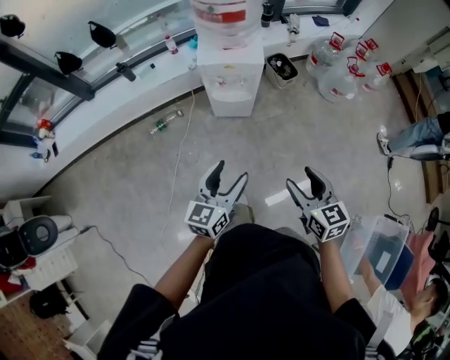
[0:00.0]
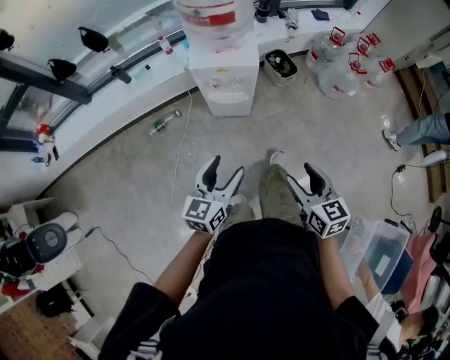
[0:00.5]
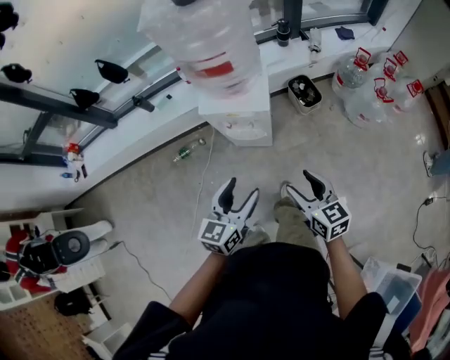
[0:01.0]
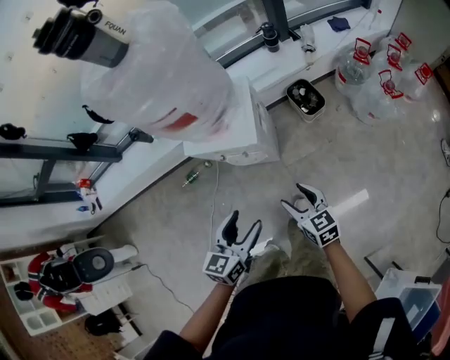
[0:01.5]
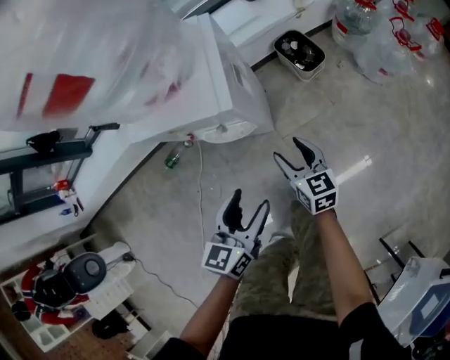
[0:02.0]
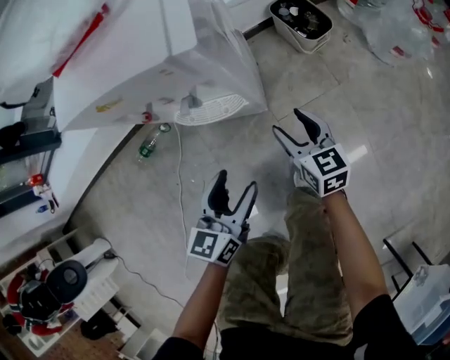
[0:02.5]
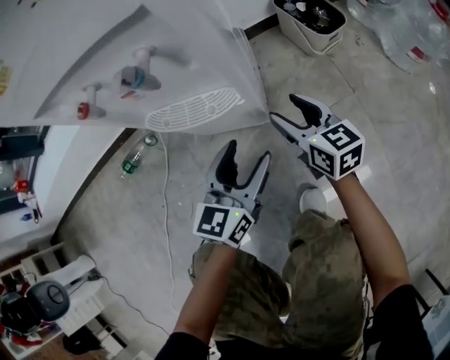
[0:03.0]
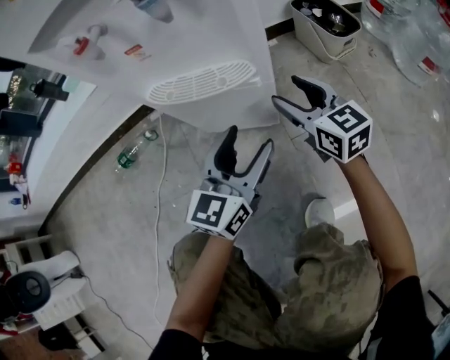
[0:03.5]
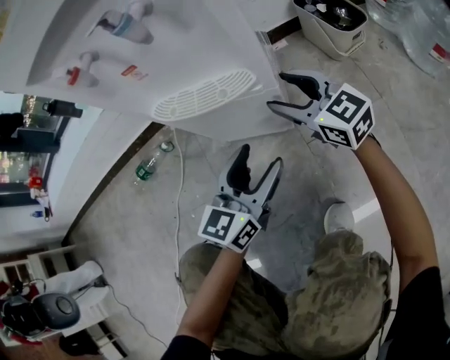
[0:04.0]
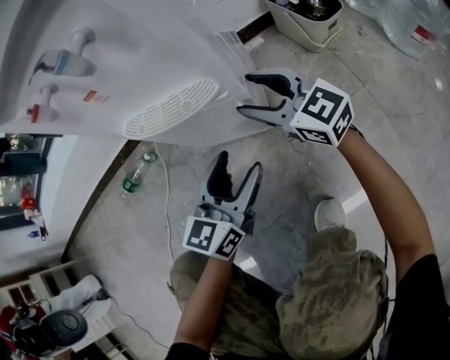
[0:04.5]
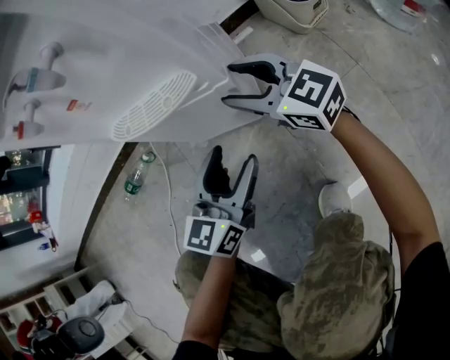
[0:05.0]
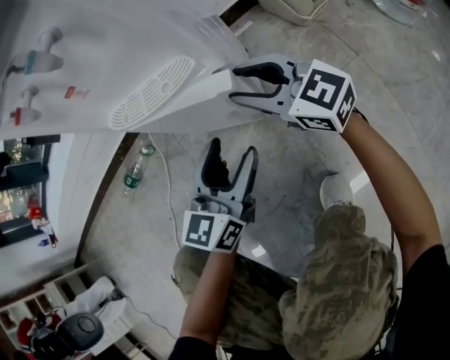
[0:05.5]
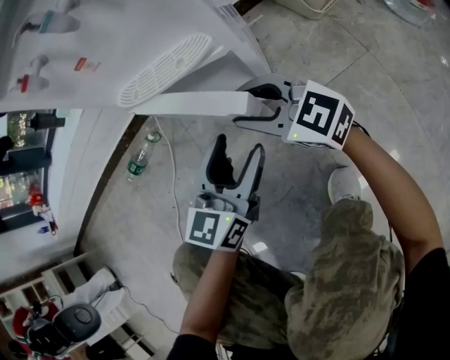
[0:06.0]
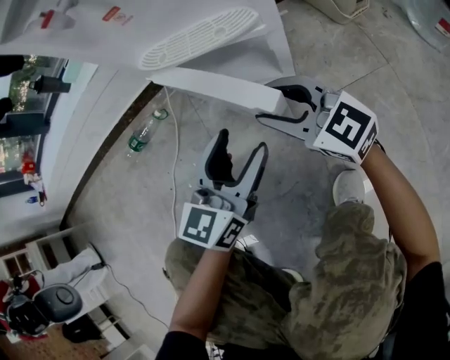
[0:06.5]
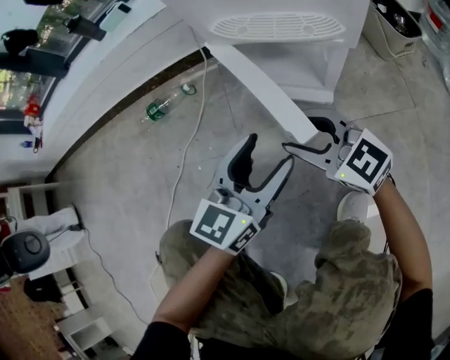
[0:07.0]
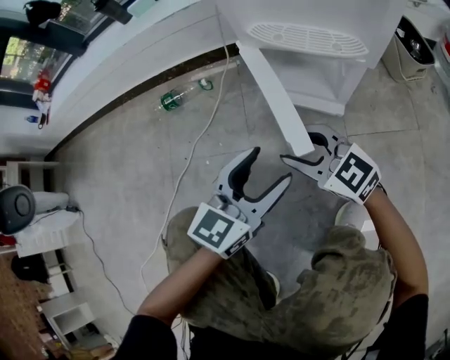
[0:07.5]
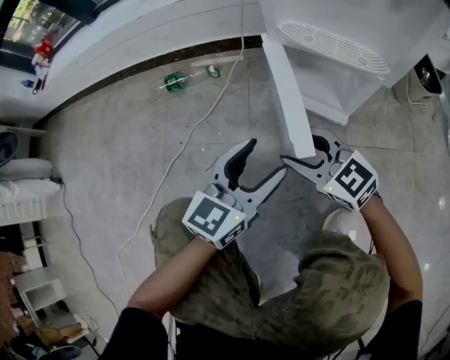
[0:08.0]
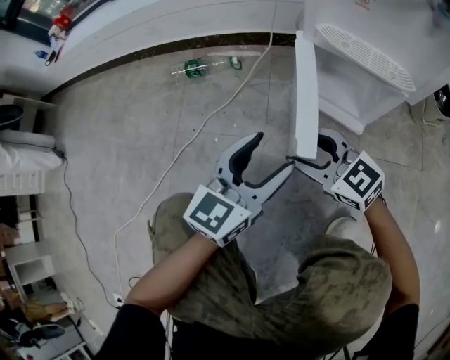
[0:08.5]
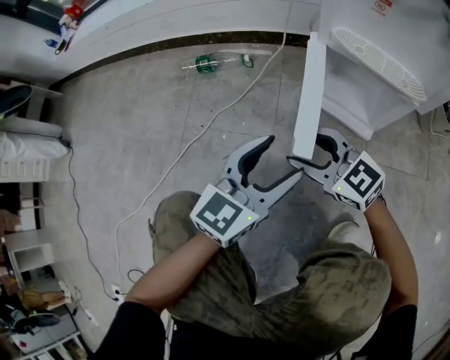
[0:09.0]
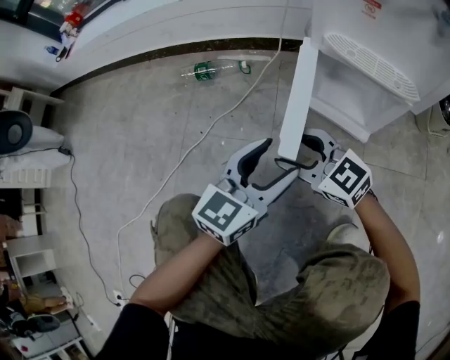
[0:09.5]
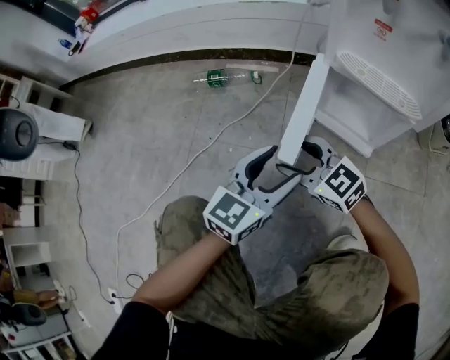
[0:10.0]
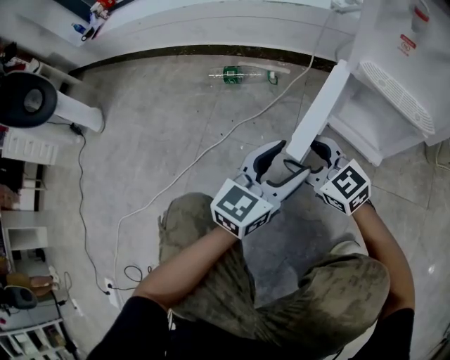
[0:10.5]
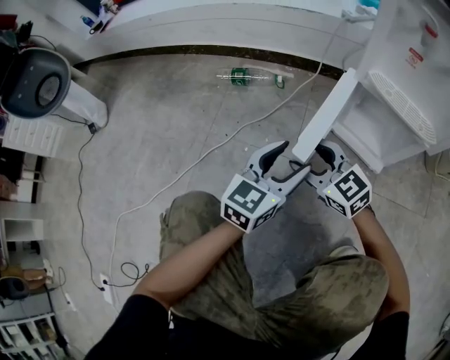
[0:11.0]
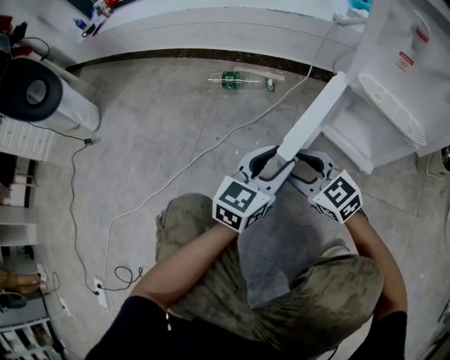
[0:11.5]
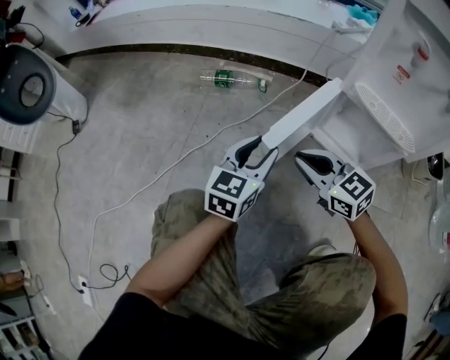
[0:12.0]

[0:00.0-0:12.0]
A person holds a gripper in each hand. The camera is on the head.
0:00.0 to 0:02.0: The right gripper heads downward and forward, covering some 50 cm. Meanwhile the left gripper is displaced downward, forward and to the right by approximately 40 cm.
0:02.0 to 0:04.0: The grippers both shift downward by roughly 35 cm. The right gripper rotates roughly 30 degrees.
0:04.0 to 0:06.0: The right gripper goes approximately 10 cm backward and to the left.
0:06.0 to 0:08.0: The grippers both shift to the left by roughly 15 cm. The right gripper changes its angle by some 20 degrees.
0:08.0 to 0:10.0: The right gripper heads to the left, covering approximately 10 cm.
0:10.0 to 0:12.0: The left gripper moves forward and to the left, roughly 10 cm, and closes, while the right gripper closes up.

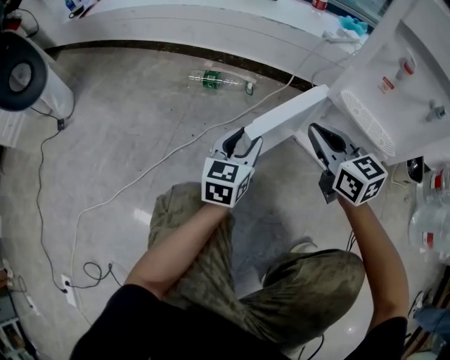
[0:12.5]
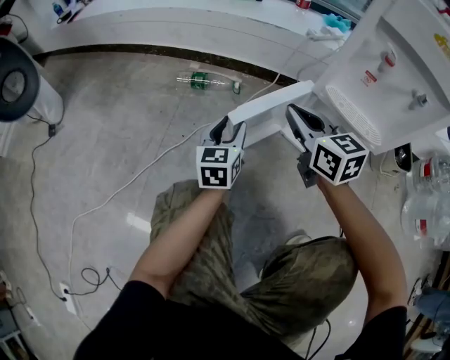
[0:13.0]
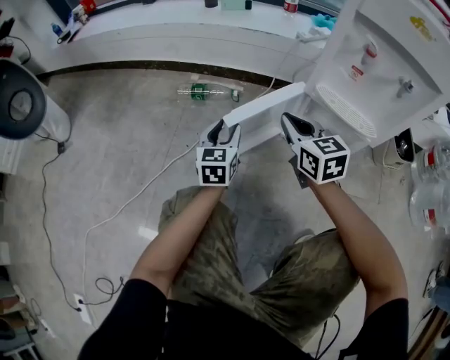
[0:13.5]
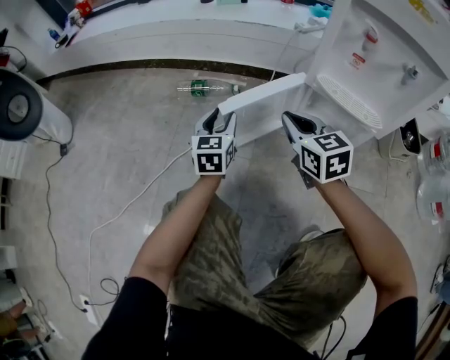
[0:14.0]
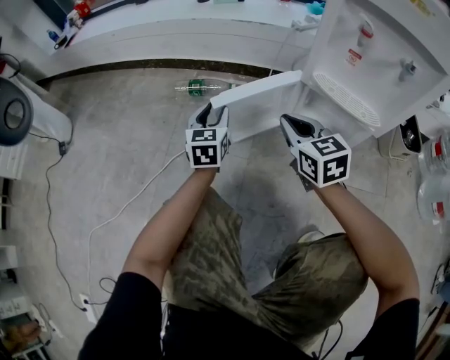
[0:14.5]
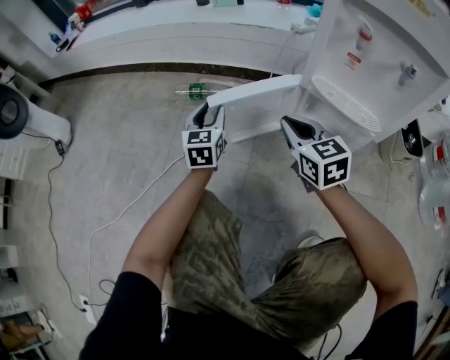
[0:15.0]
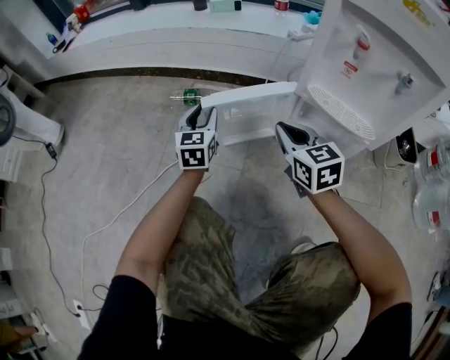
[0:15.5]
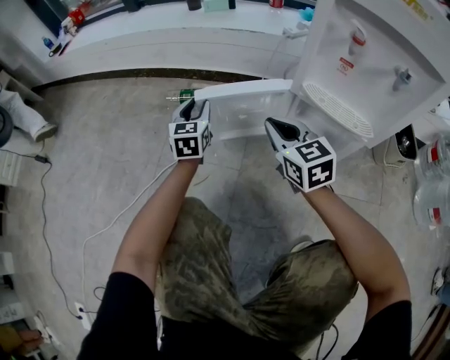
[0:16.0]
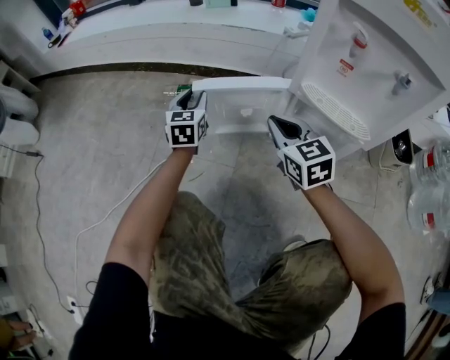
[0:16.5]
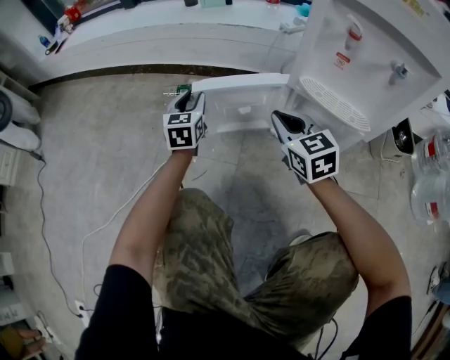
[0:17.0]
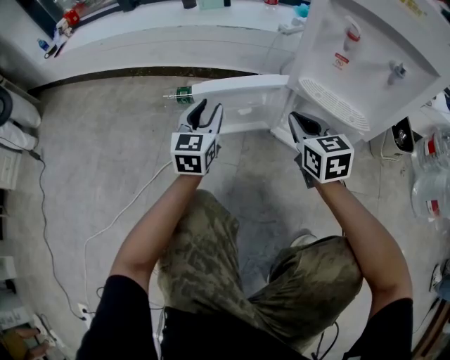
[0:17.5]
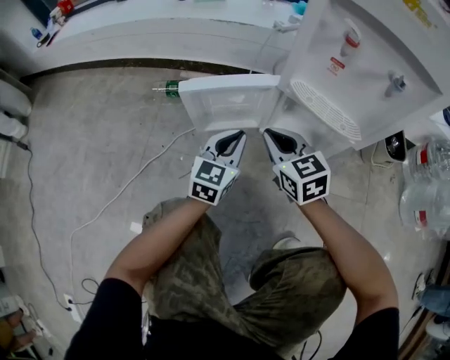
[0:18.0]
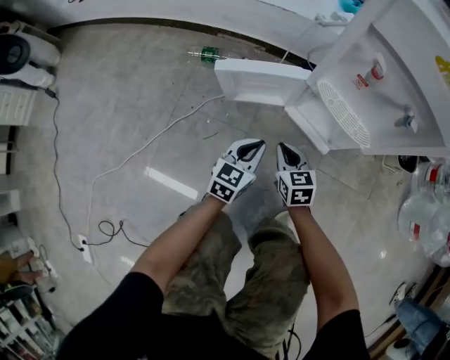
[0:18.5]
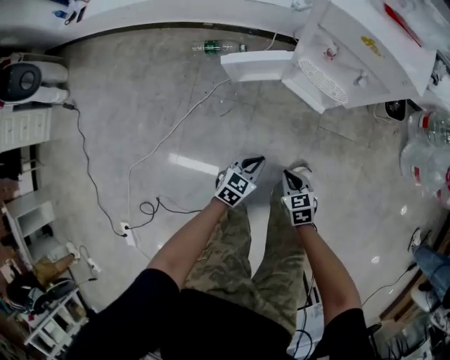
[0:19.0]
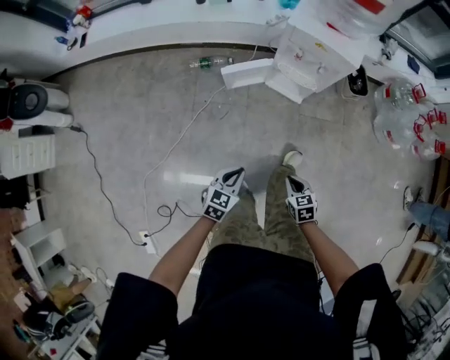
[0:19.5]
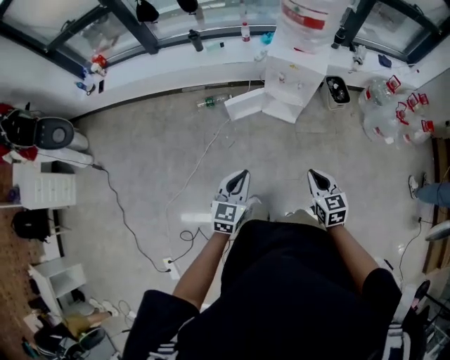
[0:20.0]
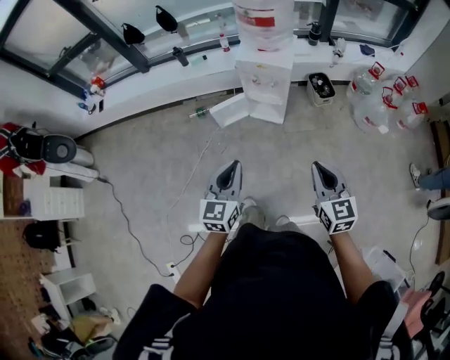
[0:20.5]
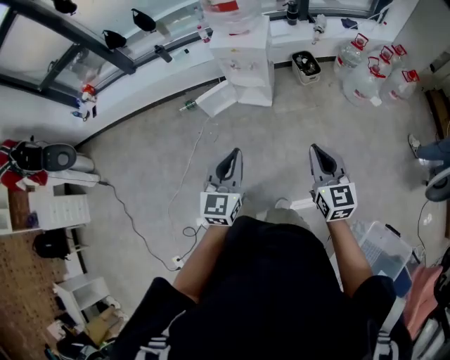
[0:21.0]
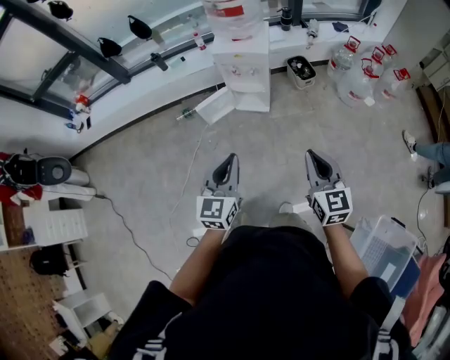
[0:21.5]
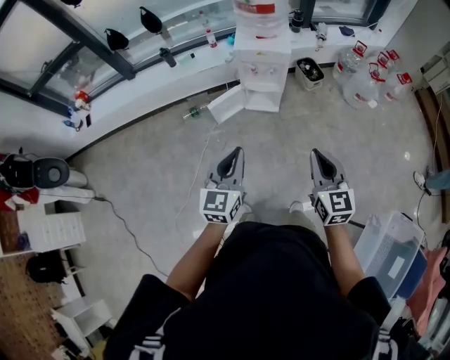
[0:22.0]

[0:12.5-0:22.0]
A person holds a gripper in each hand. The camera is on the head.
0:12.5 to 0:14.5: The left gripper is displaced forward by some 10 cm.
0:14.5 to 0:16.5: The left gripper travels forward by approximately 10 cm.
0:16.5 to 0:18.0: The left gripper travels backward and to the right by roughly 20 cm, rotates some 20 degrees, and closes its fingers.
0:18.0 to 0:20.0: The grippers both shift upward and backward by about 70 cm. The right gripper turns by roughly 20 degrees.
0:20.0 to 0:22.0: The left gripper travels upward by roughly 10 cm, and moves approximately 20 cm to the right and comes back; the right gripper goes about 15 cm upward and backward, reaches approximately 20 cm to the right, then returns, and rotates about 30 degrees.

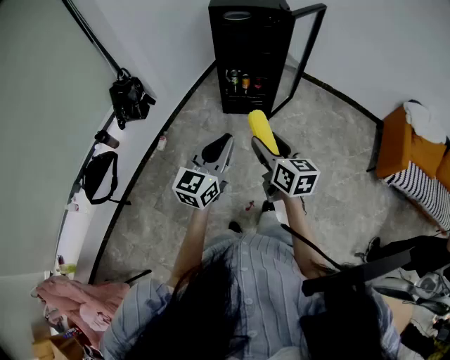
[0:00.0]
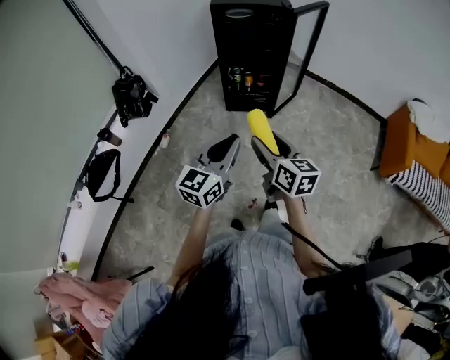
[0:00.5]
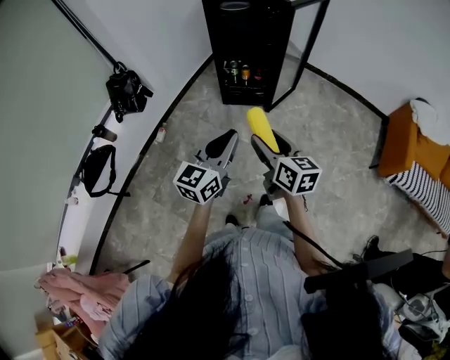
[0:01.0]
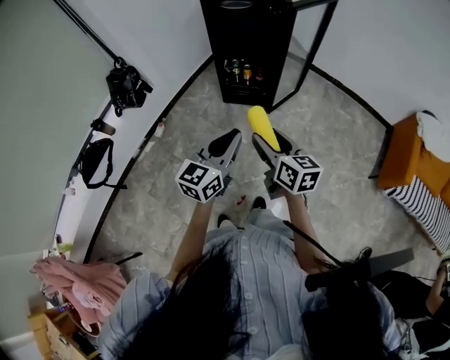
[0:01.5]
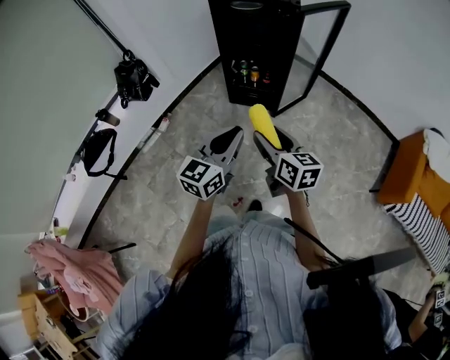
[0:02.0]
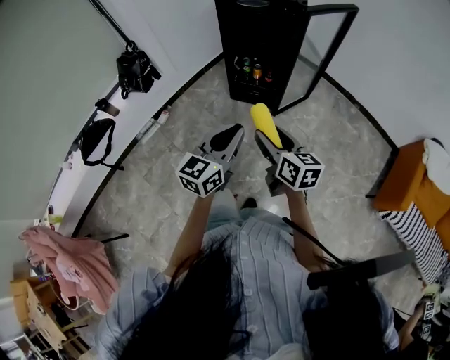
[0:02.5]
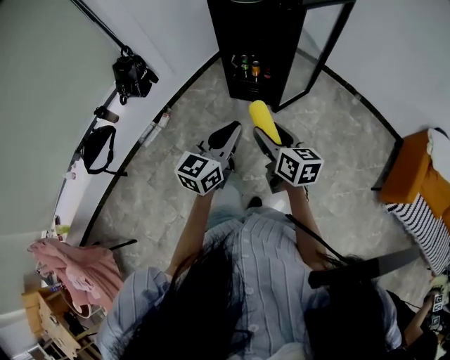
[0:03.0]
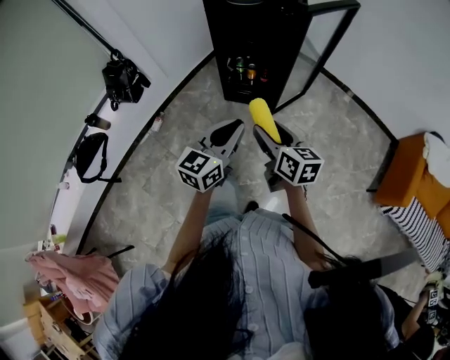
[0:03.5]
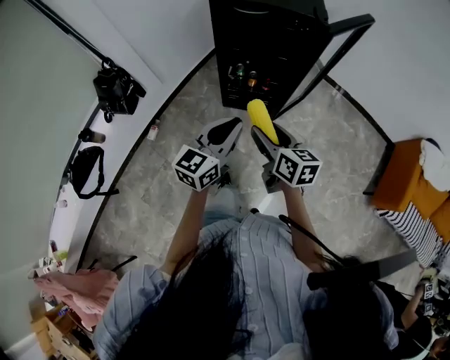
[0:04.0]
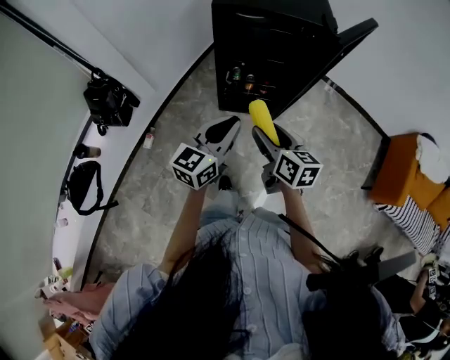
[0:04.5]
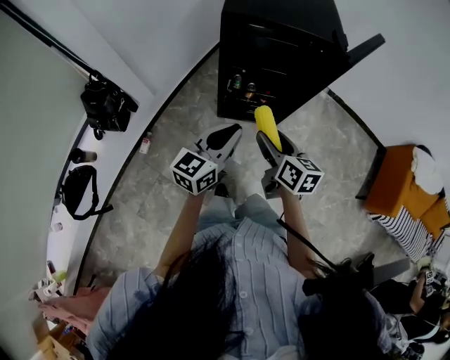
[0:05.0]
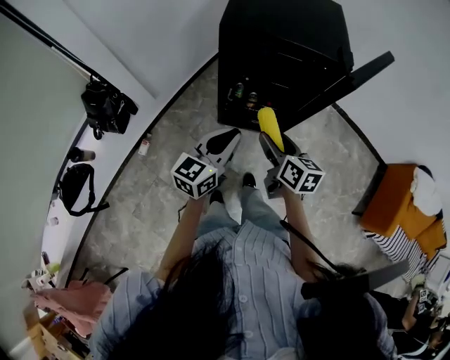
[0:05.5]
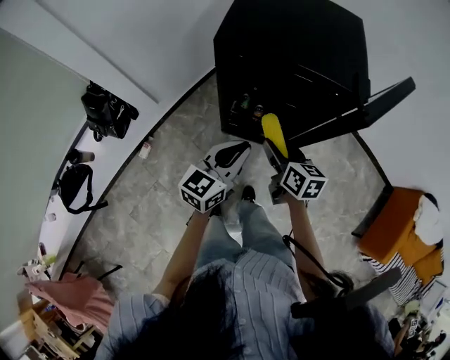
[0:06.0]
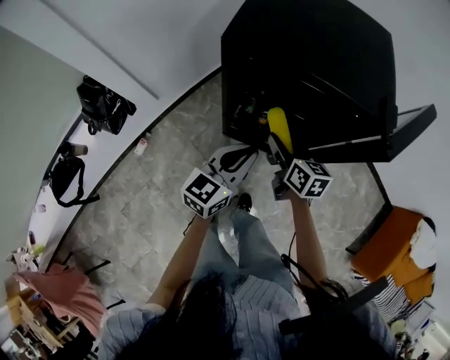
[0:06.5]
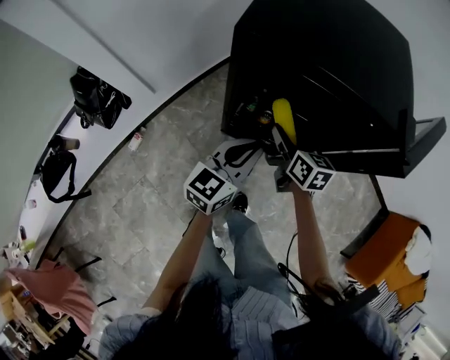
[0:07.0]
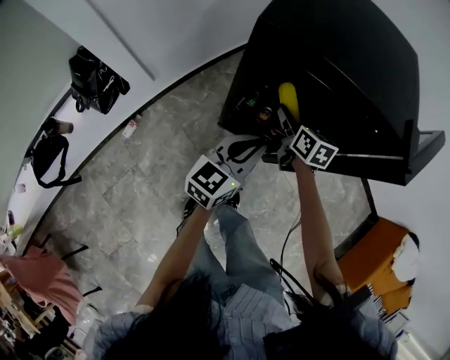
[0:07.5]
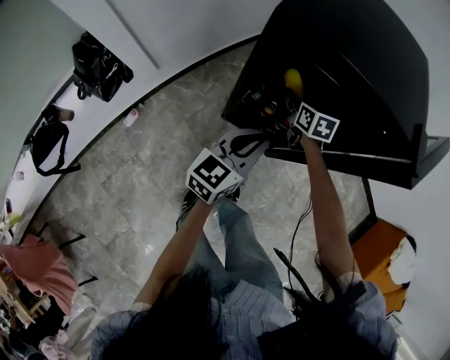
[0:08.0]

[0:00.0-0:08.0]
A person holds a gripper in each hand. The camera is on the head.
0:00.0 to 0:02.0: The grippers both shift to the right and forward by approximately 15 cm.
0:02.0 to 0:04.0: Both grippers travel together forward, roughly 20 cm.
0:04.0 to 0:06.0: The two grippers go roughly 25 cm forward.
0:06.0 to 0:08.0: The right gripper heads forward and downward, covering approximately 25 cm, and turns by approximately 20 degrees. The left gripper goes roughly 10 cm downward and forward.
